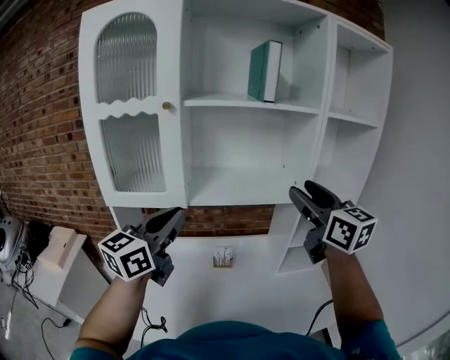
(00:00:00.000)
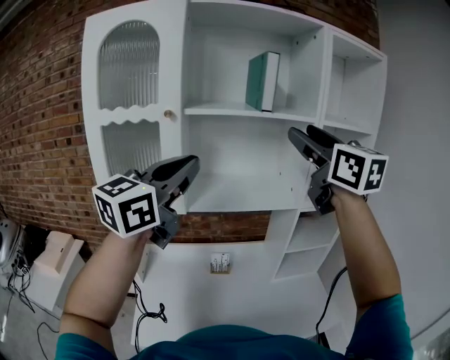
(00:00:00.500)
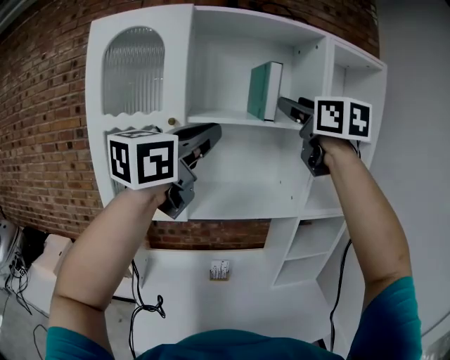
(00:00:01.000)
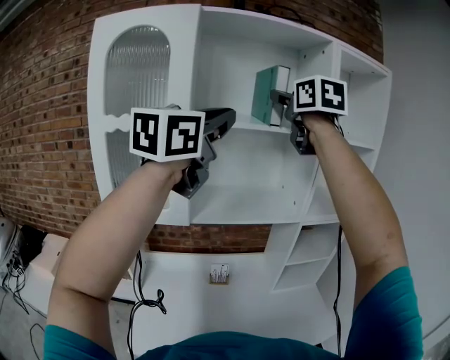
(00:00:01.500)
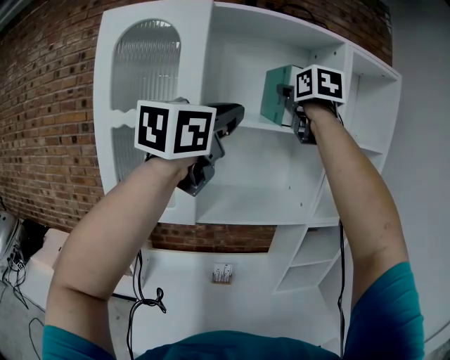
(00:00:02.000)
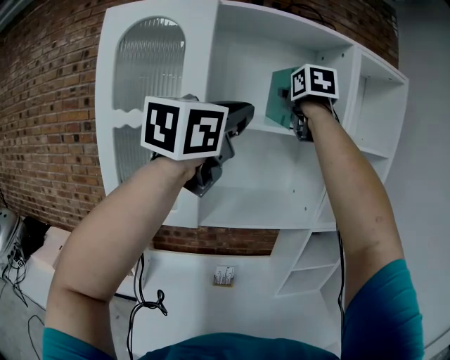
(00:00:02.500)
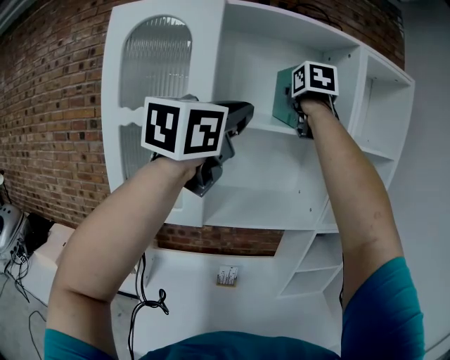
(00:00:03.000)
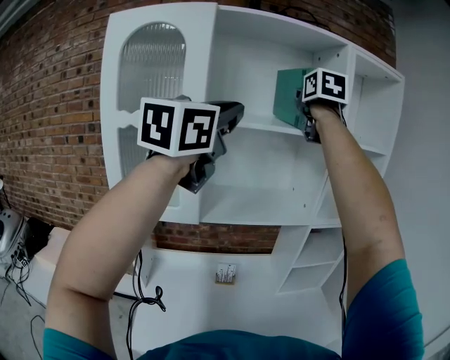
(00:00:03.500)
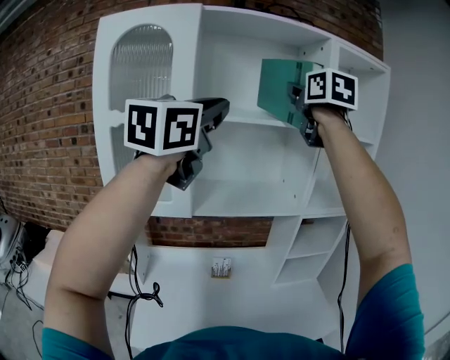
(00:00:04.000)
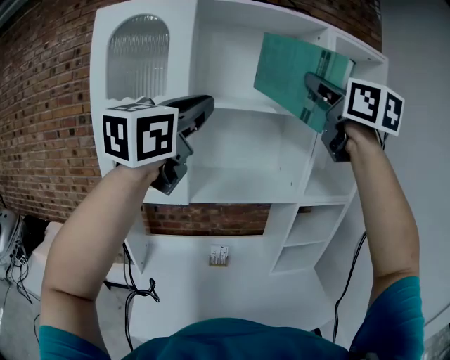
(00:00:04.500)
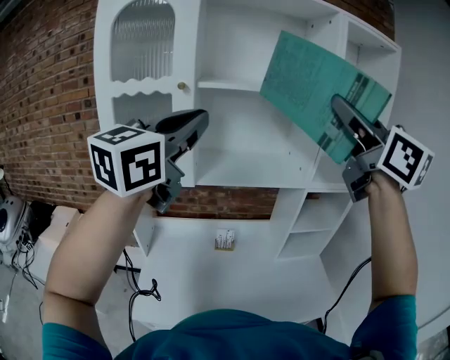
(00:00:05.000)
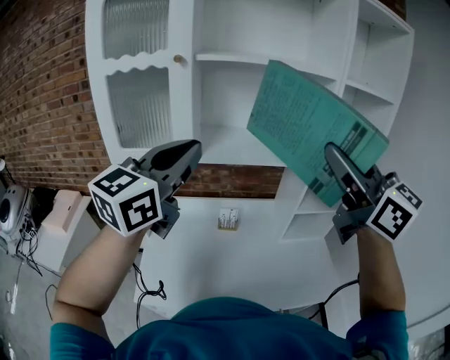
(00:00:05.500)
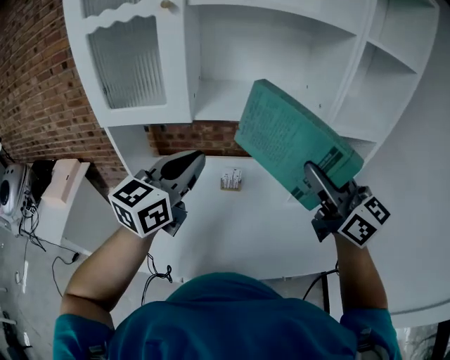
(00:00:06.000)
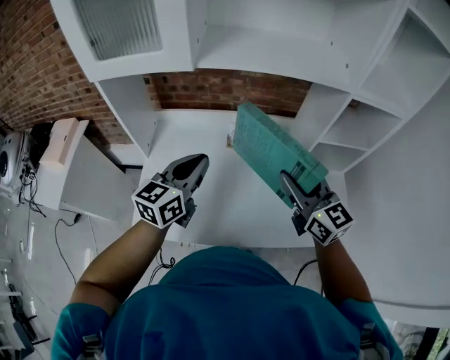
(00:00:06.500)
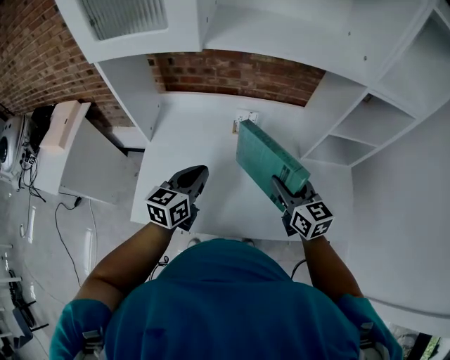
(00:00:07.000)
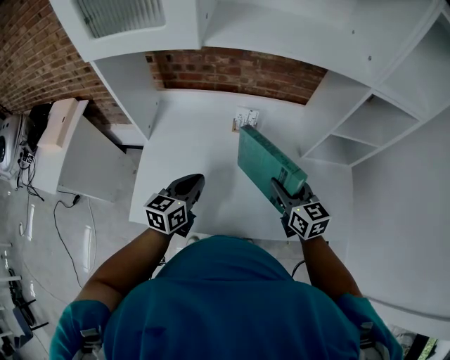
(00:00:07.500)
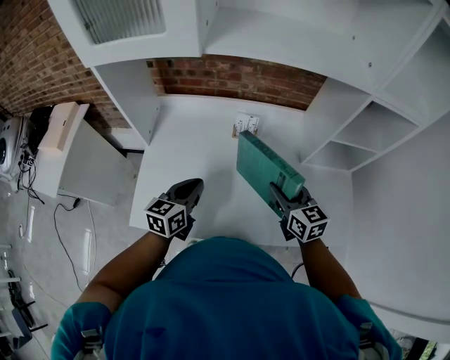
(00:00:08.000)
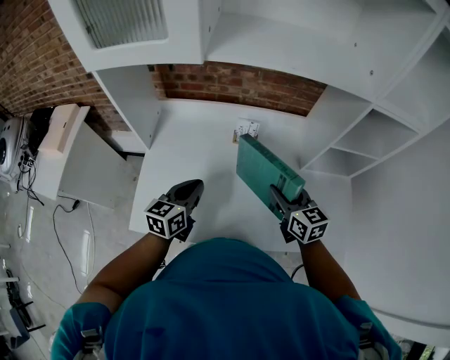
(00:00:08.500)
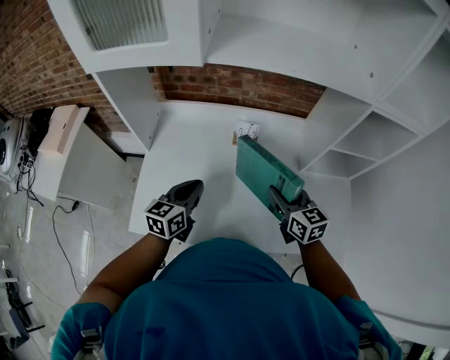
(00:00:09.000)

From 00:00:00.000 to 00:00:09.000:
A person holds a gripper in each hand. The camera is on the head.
From 00:00:00.000 to 00:00:02.000: The right gripper shifts roughly 30 cm upward and forward, and turns by roughly 20 degrees, while the left gripper goes roughly 25 cm upward.
From 00:00:02.000 to 00:00:04.500: The right gripper is displaced backward and to the right by about 20 cm, and closes up. Meanwhile the left gripper shifts roughly 5 cm backward.
From 00:00:04.500 to 00:00:07.000: Both grippers move downward, about 60 cm. The left gripper changes its angle by about 40 degrees, while the right gripper tips its fingers downward by roughly 30 degrees.
From 00:00:07.000 to 00:00:09.000: The grippers move only a little.

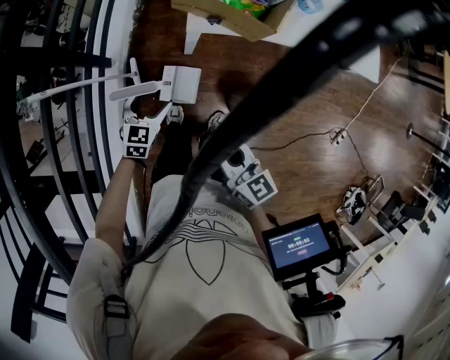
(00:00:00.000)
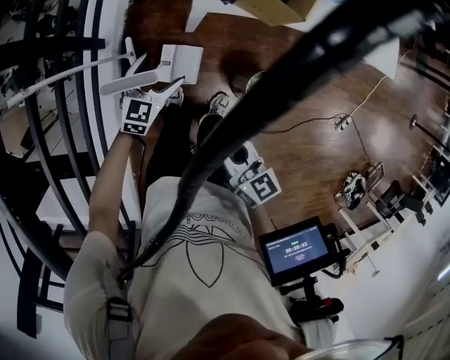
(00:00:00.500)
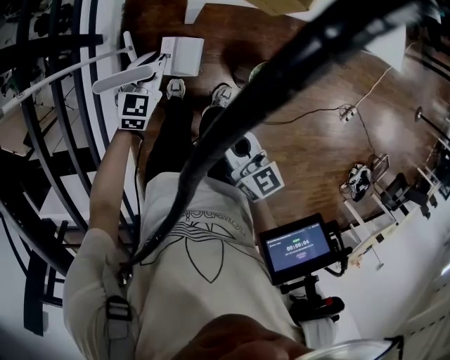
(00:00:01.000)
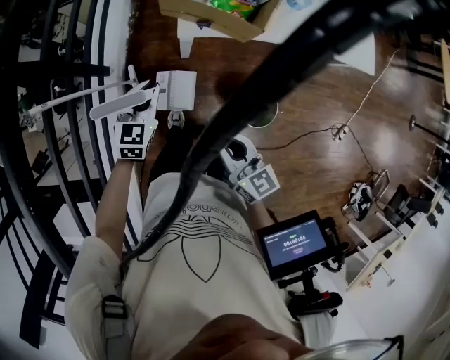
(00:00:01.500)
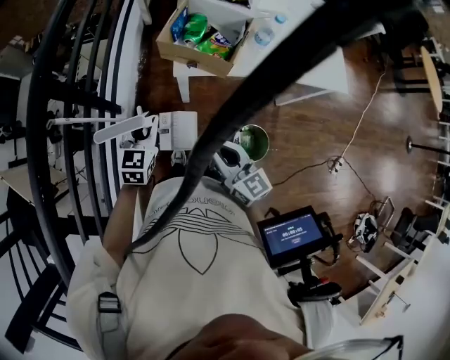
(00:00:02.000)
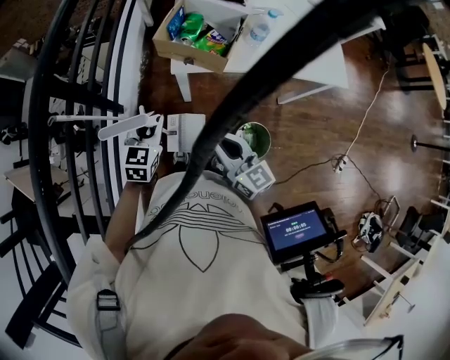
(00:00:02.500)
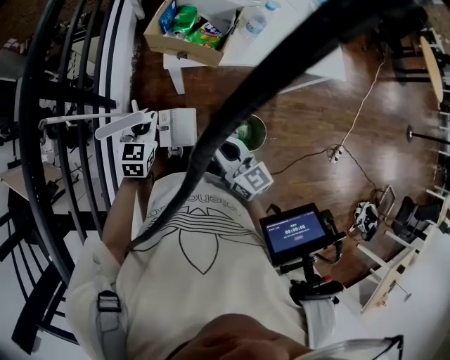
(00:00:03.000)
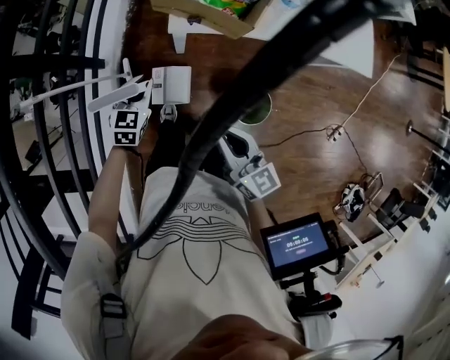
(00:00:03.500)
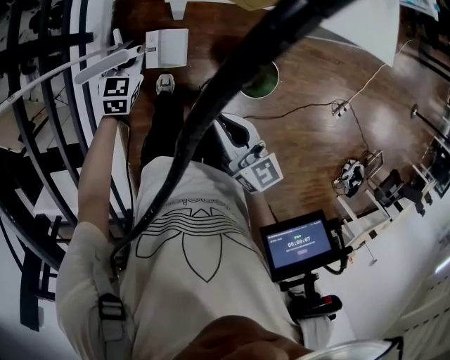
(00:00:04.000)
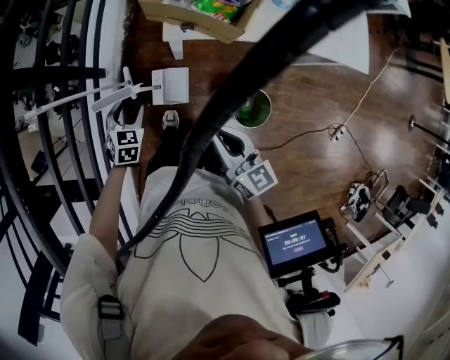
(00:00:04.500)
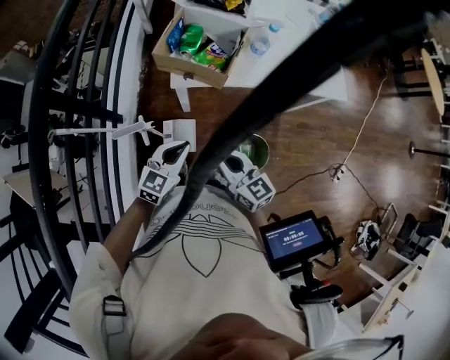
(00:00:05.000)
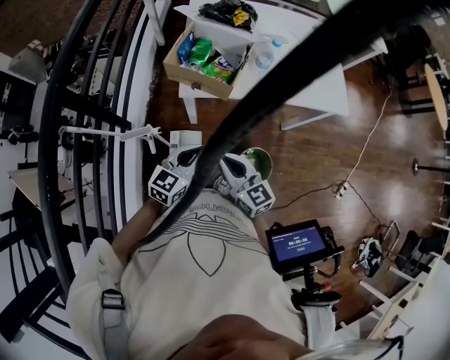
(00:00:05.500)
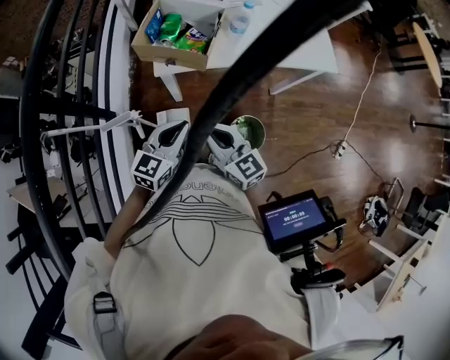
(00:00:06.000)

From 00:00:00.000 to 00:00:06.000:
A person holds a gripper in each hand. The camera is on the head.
From 00:00:00.000 to 00:00:02.000: The right gripper moves upward, some 5 cm; the left gripper moves upward, some 20 cm, and closes its fingers.
From 00:00:02.000 to 00:00:04.000: The left gripper shifts some 20 cm downward. The right gripper shifts some 10 cm downward.
From 00:00:04.000 to 00:00:06.000: The left gripper goes roughly 30 cm upward, to the right and backward, turns by some 30 degrees, and opens, then closes again. The right gripper goes about 10 cm upward, and changes its angle by some 20 degrees.

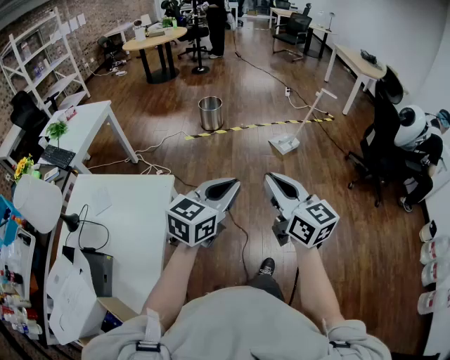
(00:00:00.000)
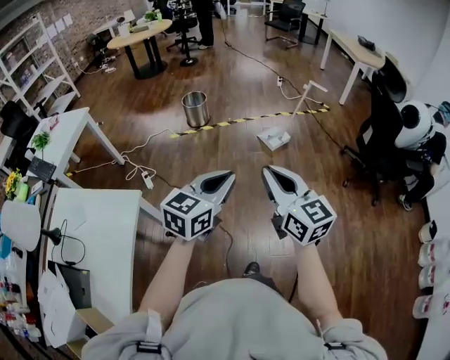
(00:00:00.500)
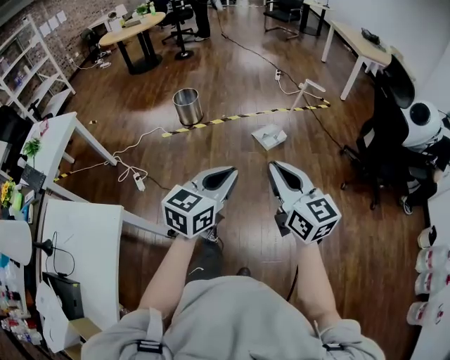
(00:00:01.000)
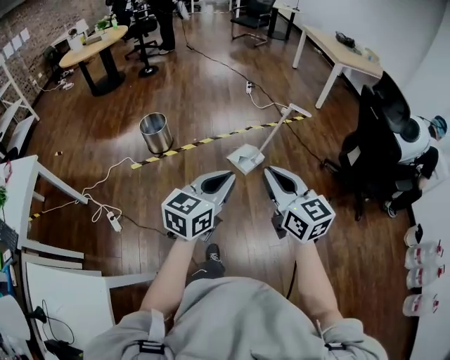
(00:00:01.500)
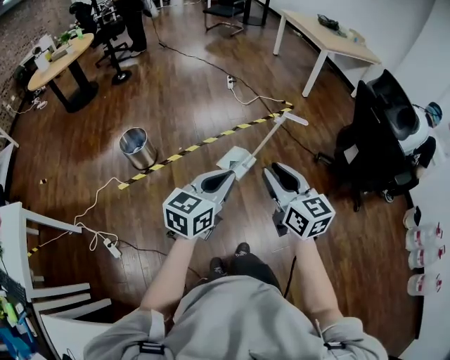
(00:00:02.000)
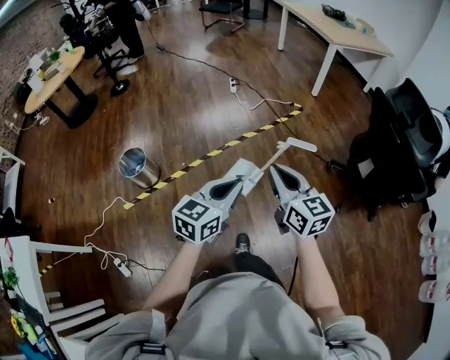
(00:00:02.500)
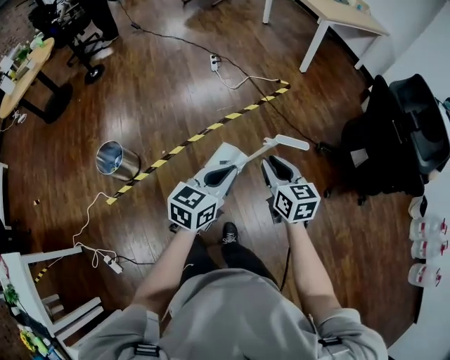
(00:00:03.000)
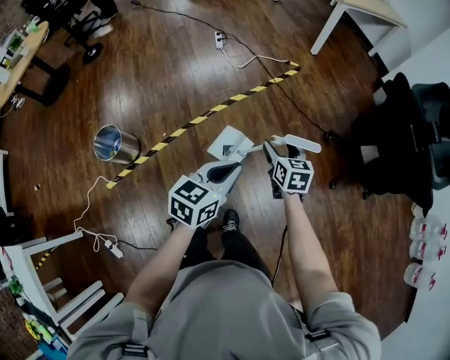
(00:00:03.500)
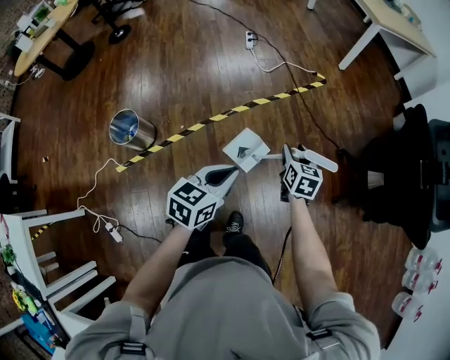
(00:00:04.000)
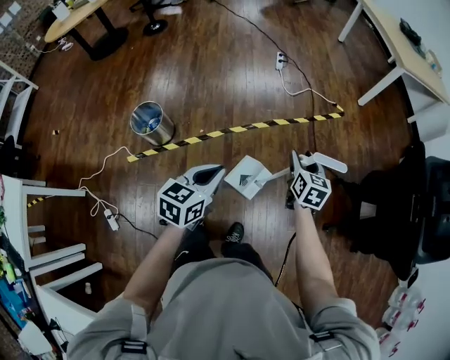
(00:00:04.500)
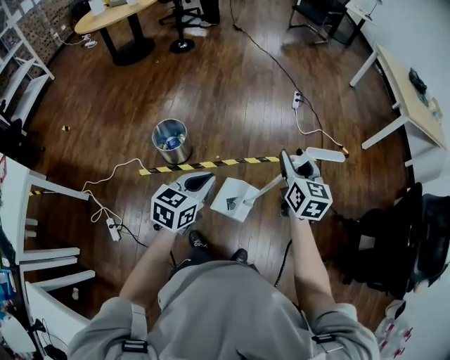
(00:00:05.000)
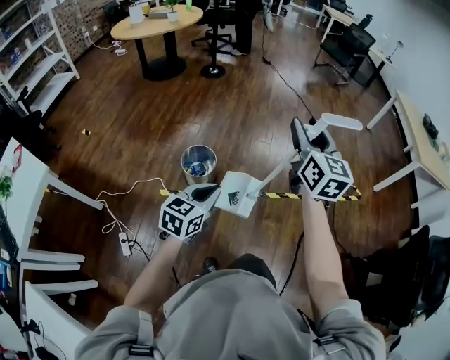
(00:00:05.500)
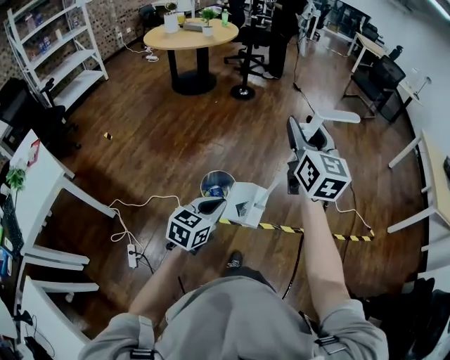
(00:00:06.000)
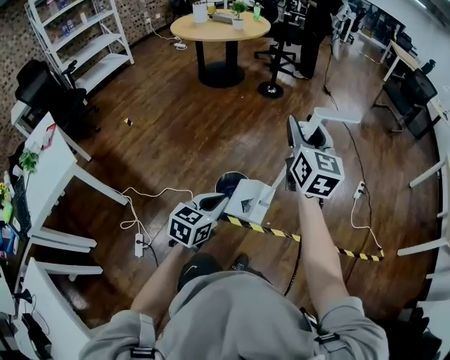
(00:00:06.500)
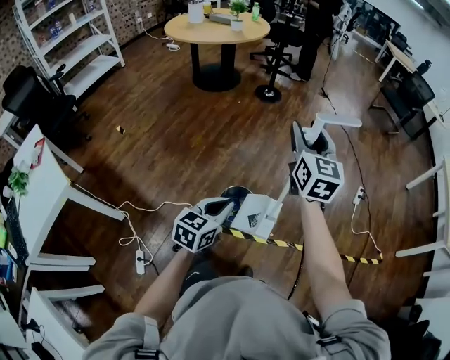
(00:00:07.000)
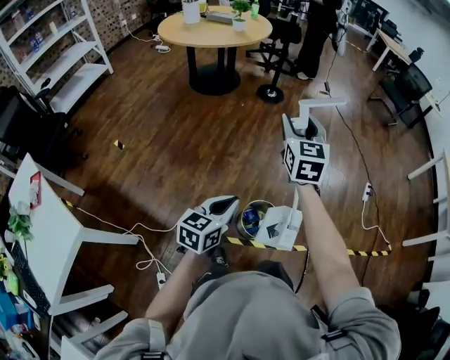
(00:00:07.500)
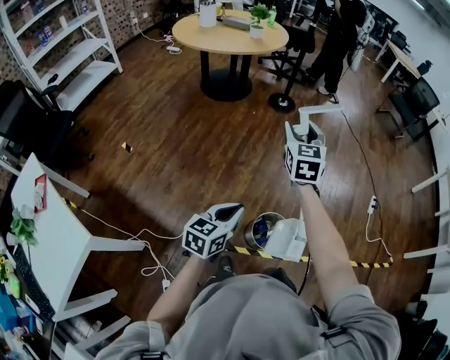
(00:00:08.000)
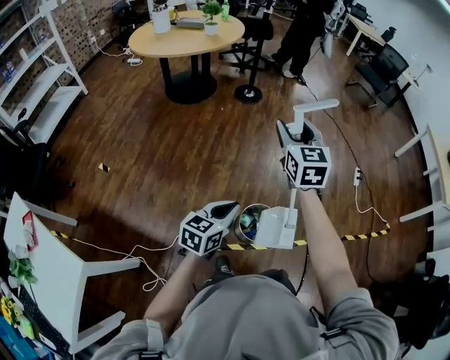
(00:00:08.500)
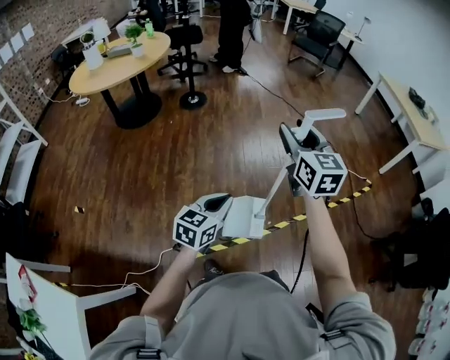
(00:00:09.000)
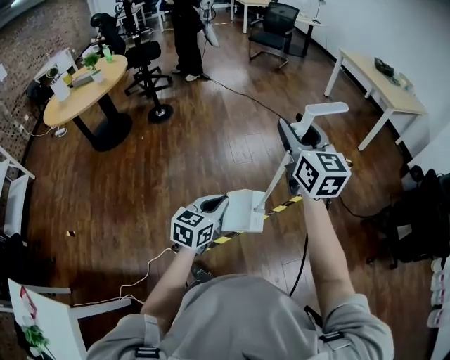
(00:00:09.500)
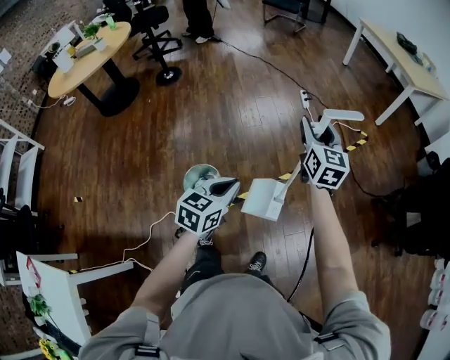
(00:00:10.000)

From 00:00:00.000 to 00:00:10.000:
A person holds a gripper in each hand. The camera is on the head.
From 00:00:00.000 to 00:00:02.000: Both grippers are carried forward, about 70 cm. The right gripper changes its angle by some 20 degrees, and opens.
From 00:00:02.000 to 00:00:04.000: Both grippers travel together forward and downward, roughly 40 cm. The right gripper changes its angle by roughly 30 degrees, and closes, then opens again.
From 00:00:04.000 to 00:00:06.000: Both grippers are carried approximately 60 cm. The right gripper tilts its fingers some 40 degrees upward. The left gripper rotates roughly 40 degrees.
From 00:00:06.000 to 00:00:08.000: The two grippers travel together, to the left and forward, some 50 cm. The right gripper turns by some 20 degrees.
From 00:00:08.000 to 00:00:10.000: Both grippers are carried roughly 60 cm. The right gripper turns by approximately 40 degrees; the left gripper swivels approximately 40 degrees.

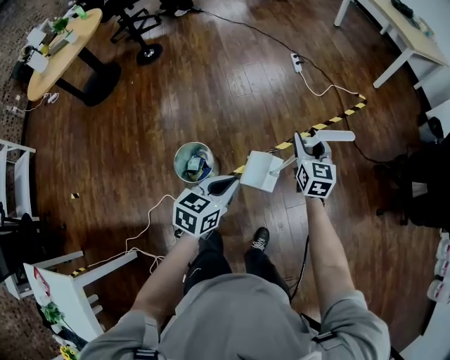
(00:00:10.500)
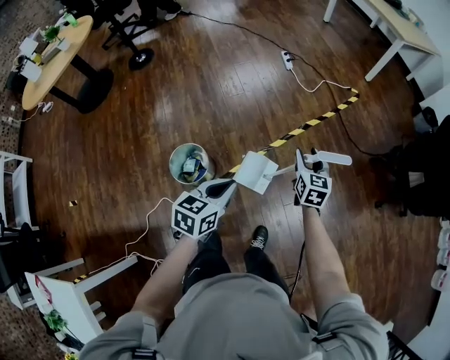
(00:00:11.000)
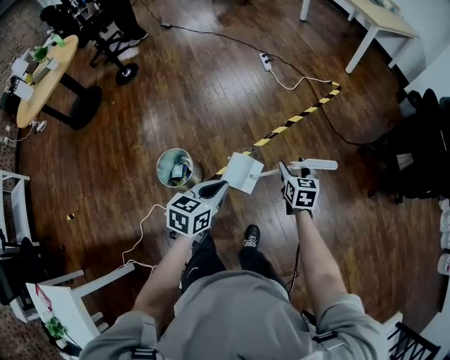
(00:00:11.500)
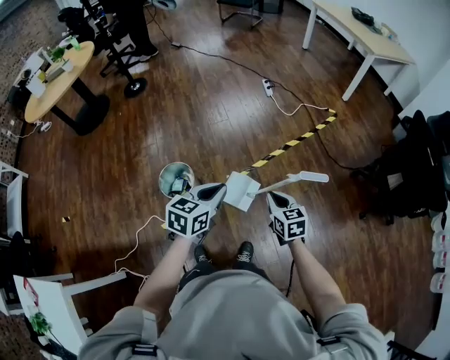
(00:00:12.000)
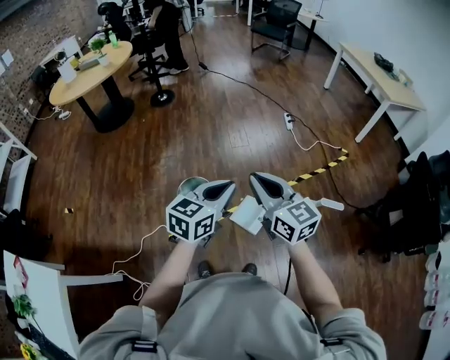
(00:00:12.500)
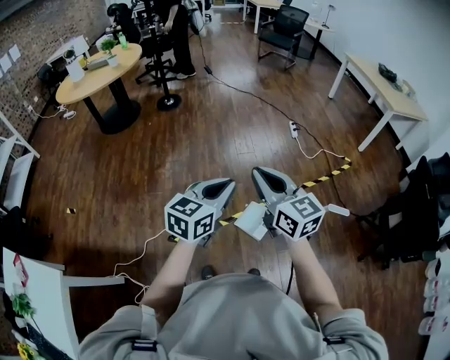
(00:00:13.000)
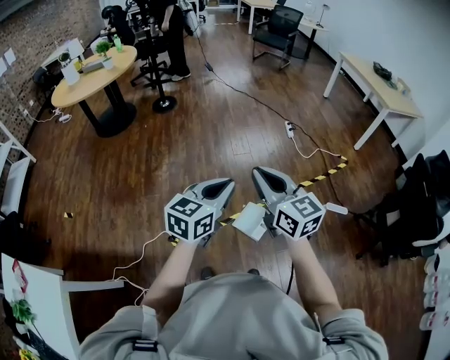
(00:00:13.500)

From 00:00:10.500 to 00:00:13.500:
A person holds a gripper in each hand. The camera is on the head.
From 00:00:10.500 to 00:00:12.000: The left gripper is displaced to the right by approximately 5 cm. The right gripper is displaced backward by about 20 cm, swivels roughly 20 degrees, and closes.
From 00:00:12.000 to 00:00:13.500: The right gripper heads upward and to the left, covering roughly 35 cm, and changes its angle by some 40 degrees. The left gripper is displaced upward and to the left by approximately 20 cm.
